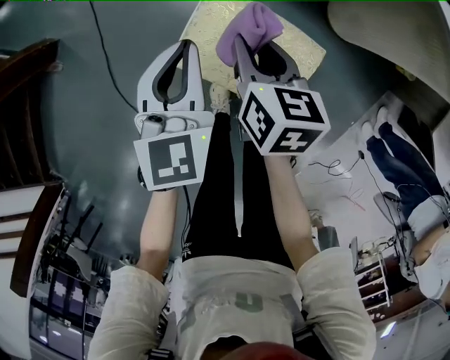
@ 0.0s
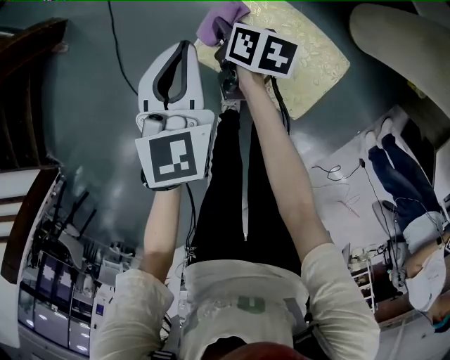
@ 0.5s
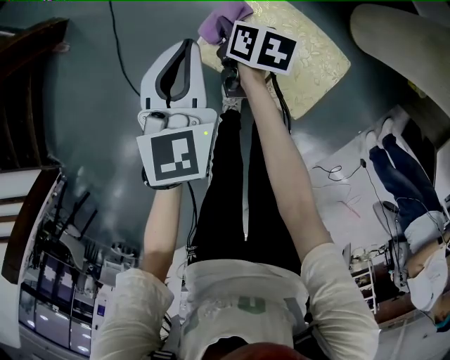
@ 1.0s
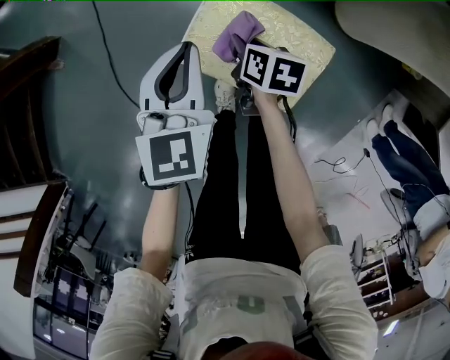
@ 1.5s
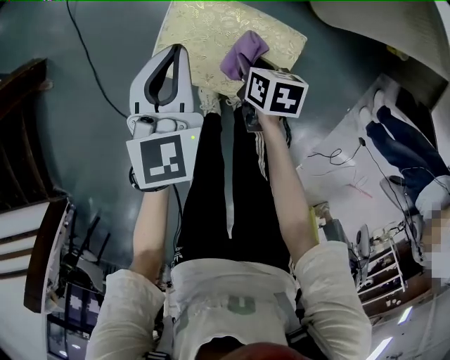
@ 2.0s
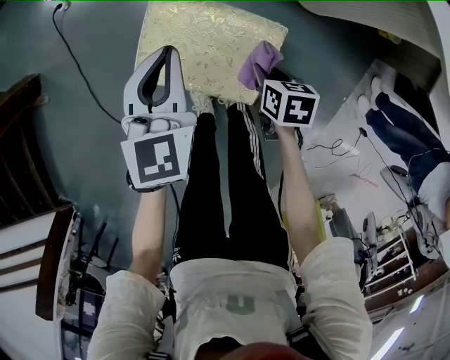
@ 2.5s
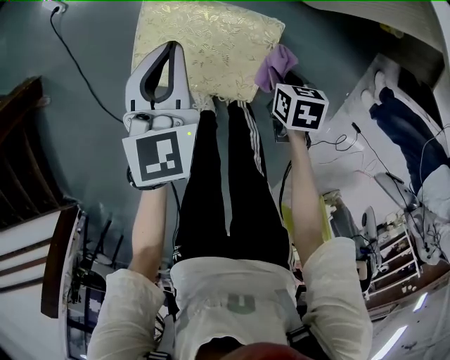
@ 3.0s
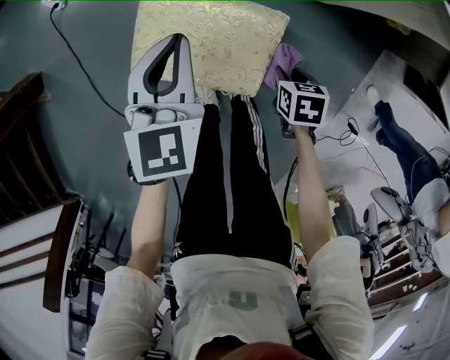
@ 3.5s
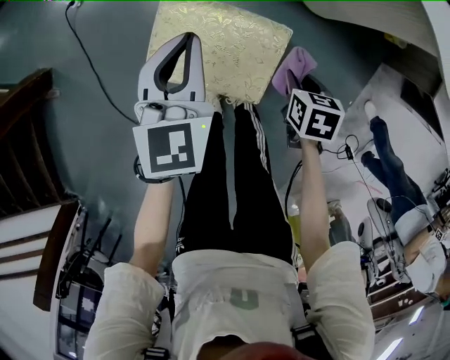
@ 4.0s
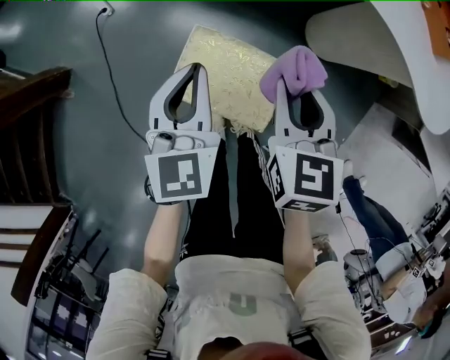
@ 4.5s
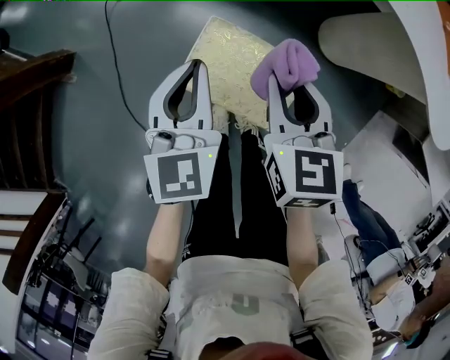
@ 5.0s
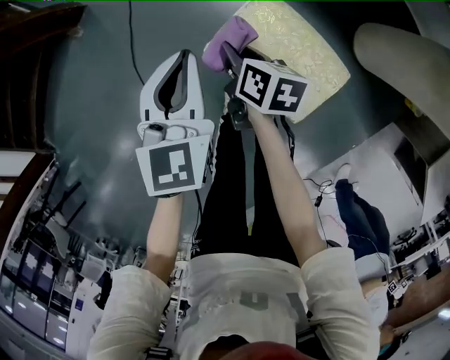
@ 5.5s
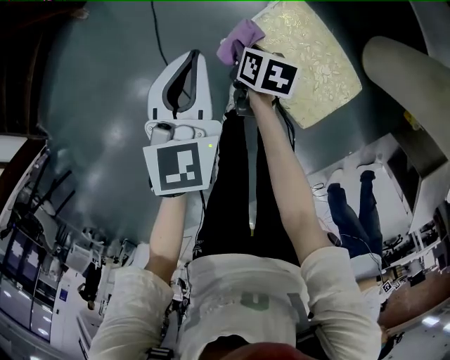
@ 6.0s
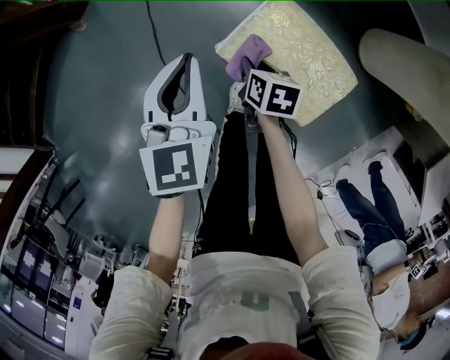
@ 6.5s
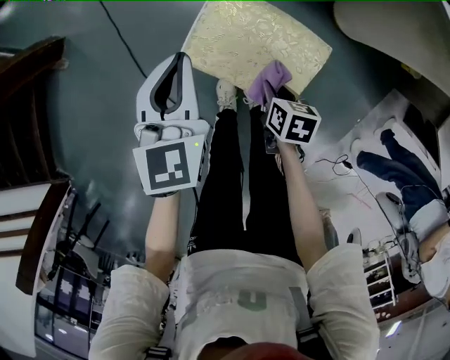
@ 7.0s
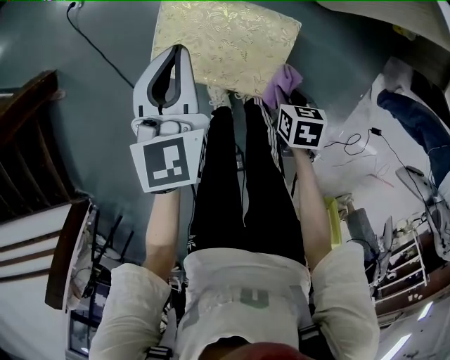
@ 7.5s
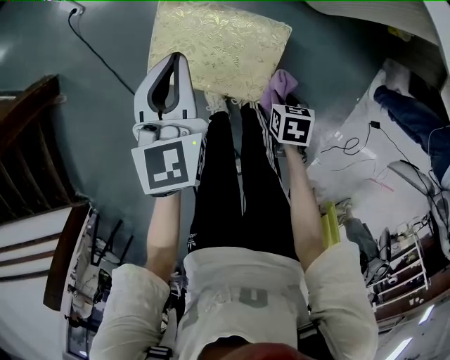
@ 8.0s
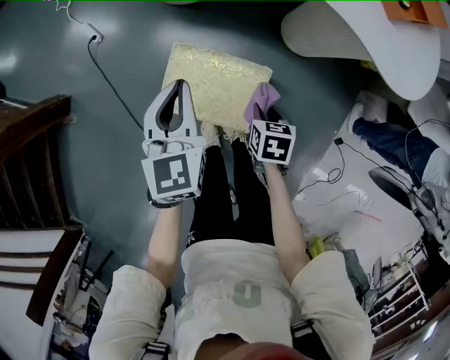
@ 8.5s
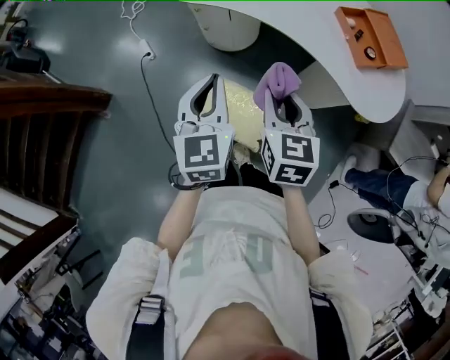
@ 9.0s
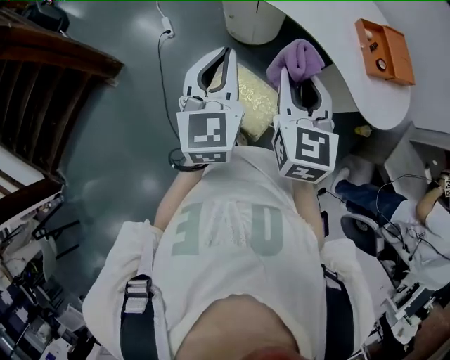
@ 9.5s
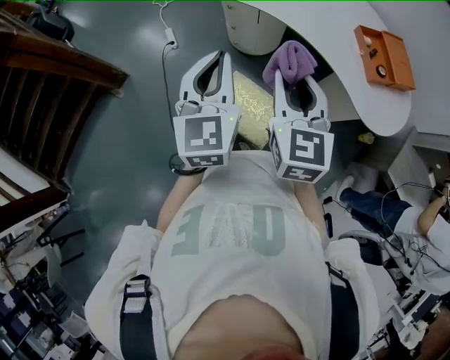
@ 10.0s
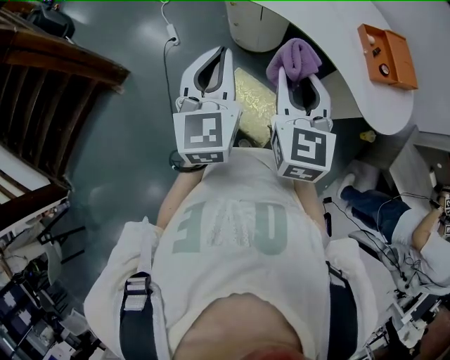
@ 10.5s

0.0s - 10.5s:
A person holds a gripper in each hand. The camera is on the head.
0.0s - 2.0s: The right gripper shifts about 15 cm downward and backward, and turns by some 20 degrees, while the left gripper travels to the left and back again, roughly 5 cm each way.
2.0s - 4.0s: The left gripper ends up about 5 cm from where it was; the right gripper ends up approximately 15 cm from where it was.
4.0s - 6.5s: The left gripper shifts by roughly 25 cm, and rotates some 30 degrees, while the right gripper travels upward and back again, approximately 25 cm each way, and swivels some 20 degrees.
6.5s - 8.5s: The left gripper moves about 25 cm, and changes its angle by approximately 20 degrees. The right gripper changes place by about 30 cm, and turns by roughly 20 degrees.
8.5s - 10.5s: The left gripper moves upward, some 30 cm, and turns by about 20 degrees. The right gripper moves upward, approximately 50 cm, and tips its fingers upward by roughly 50 degrees.

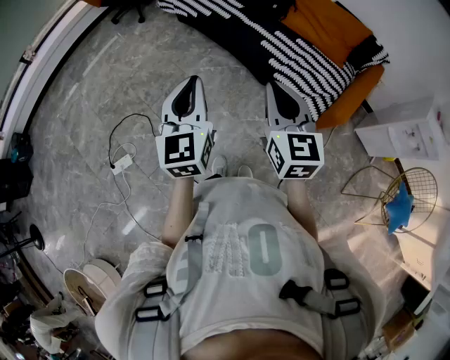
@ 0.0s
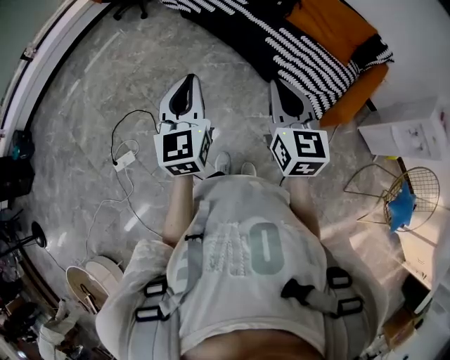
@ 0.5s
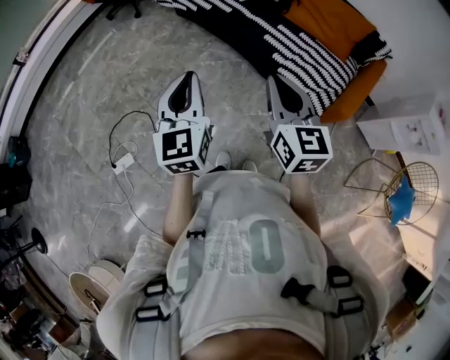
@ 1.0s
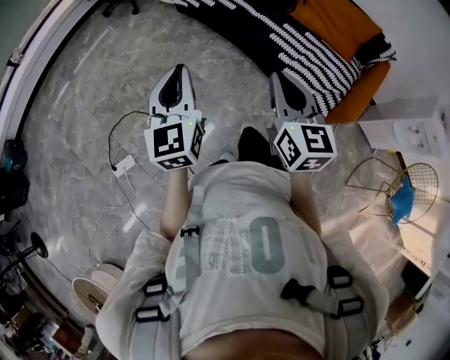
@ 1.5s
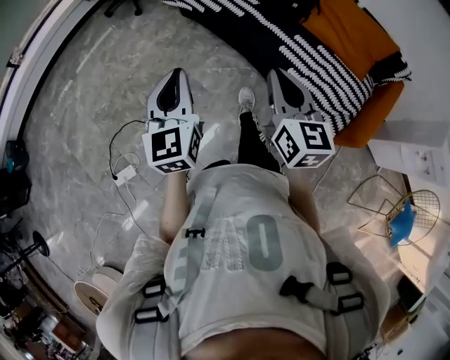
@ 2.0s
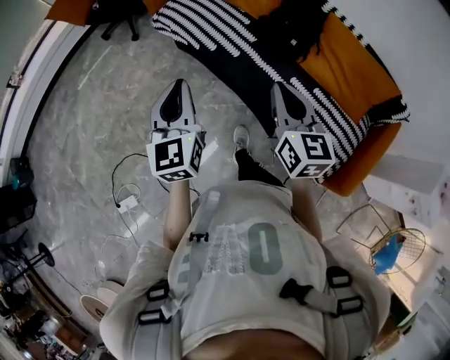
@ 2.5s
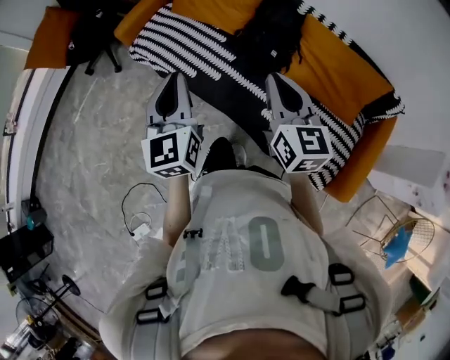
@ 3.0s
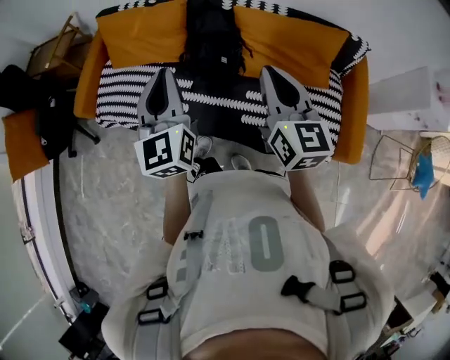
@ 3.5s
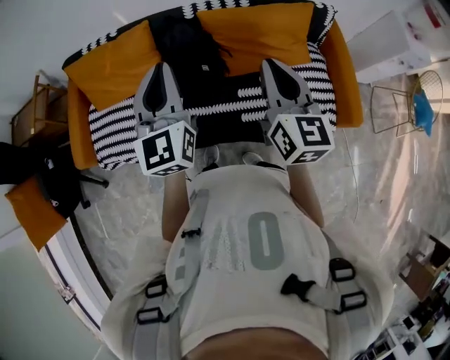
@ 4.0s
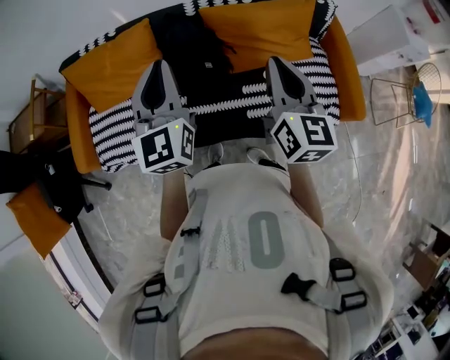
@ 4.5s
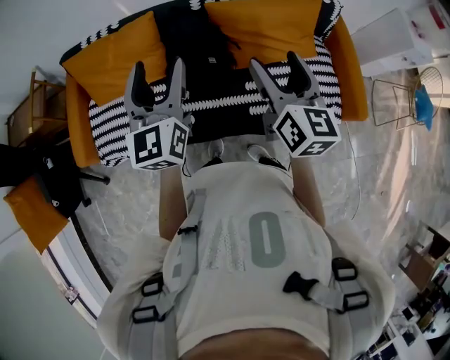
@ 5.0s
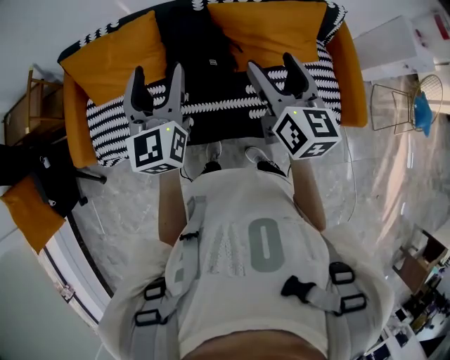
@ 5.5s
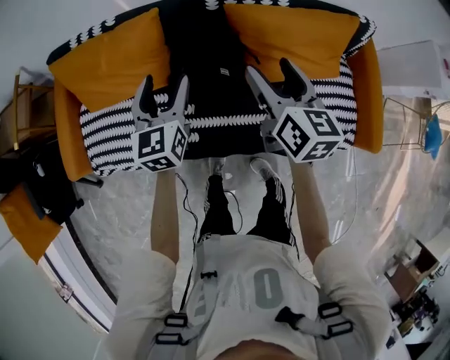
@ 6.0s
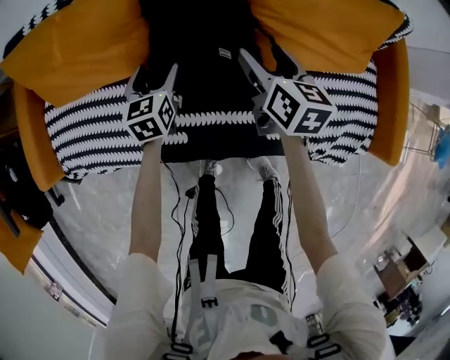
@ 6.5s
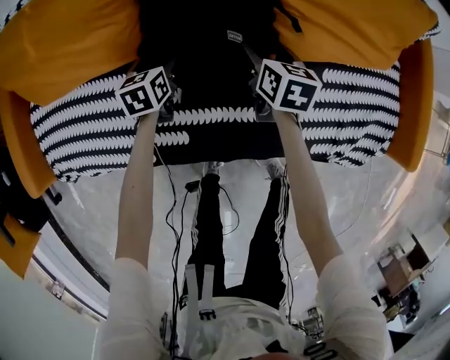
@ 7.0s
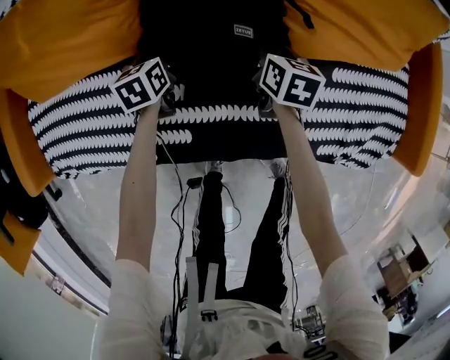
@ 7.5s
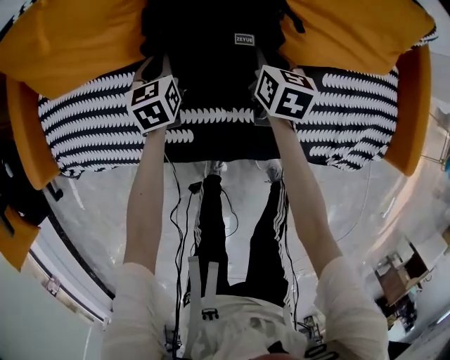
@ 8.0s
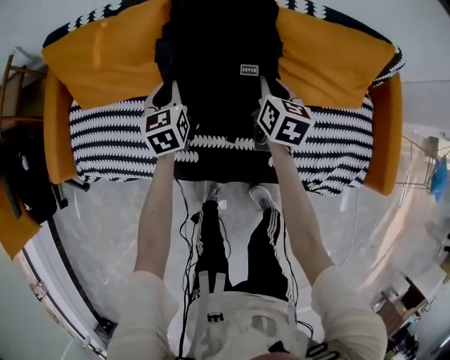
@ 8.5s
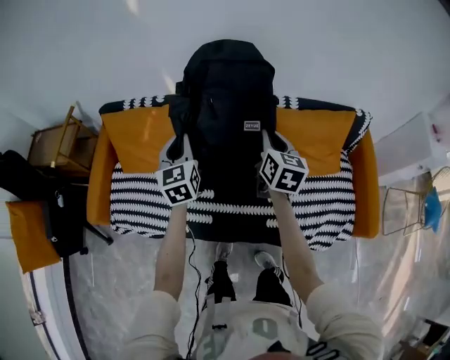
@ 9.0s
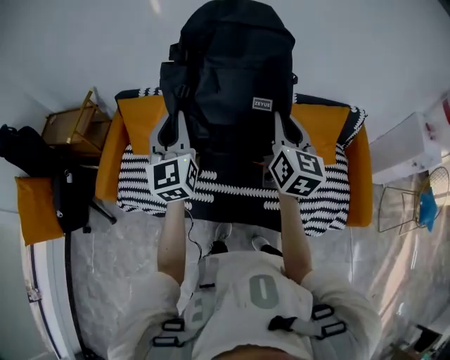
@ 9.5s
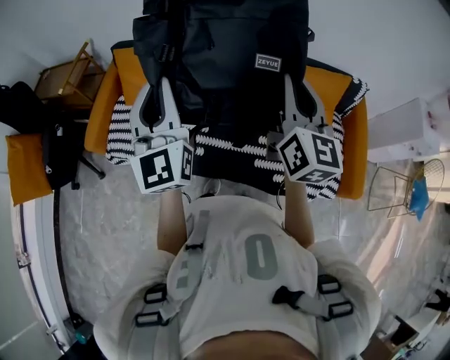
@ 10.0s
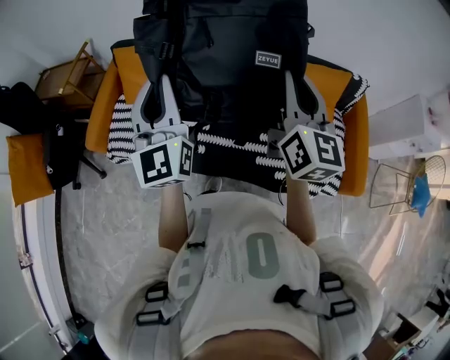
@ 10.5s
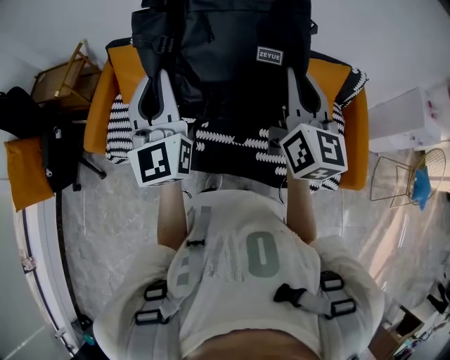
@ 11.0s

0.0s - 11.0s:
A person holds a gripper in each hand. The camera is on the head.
0.0s - 2.0s: The right gripper is displaced forward by roughly 20 cm. Meanwhile the left gripper is displaced forward and to the left by about 25 cm.
2.0s - 3.5s: The two grippers travel together, approximately 50 cm. The right gripper turns by some 30 degrees. Meanwhile the left gripper swivels some 30 degrees.
3.5s - 5.5s: The right gripper moves forward, roughly 5 cm, and opens up. Meanwhile the left gripper goes roughly 15 cm forward and to the left, changes its angle by some 20 degrees, and opens up.
5.5s - 7.5s: Both grippers travel together downward, approximately 60 cm. The right gripper points its fingers roughly 30 degrees further downward, and closes its fingers, while the left gripper tilts its fingers roughly 50 degrees downward, and closes.
7.5s - 9.0s: Both grippers travel together upward, roughly 50 cm. The right gripper turns by approximately 20 degrees; the left gripper tilts its fingers about 30 degrees upward.
9.0s - 11.0s: The left gripper moves backward and upward, roughly 35 cm, and angles its fingers upward, by approximately 30 degrees, while the right gripper is displaced upward and backward by roughly 30 cm, and rotates approximately 30 degrees.

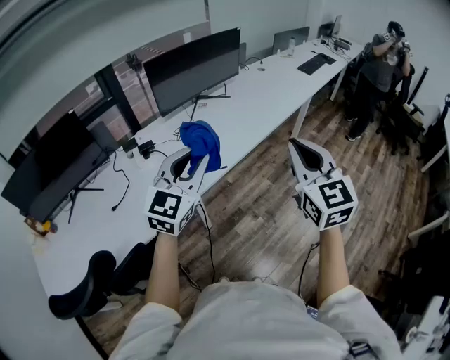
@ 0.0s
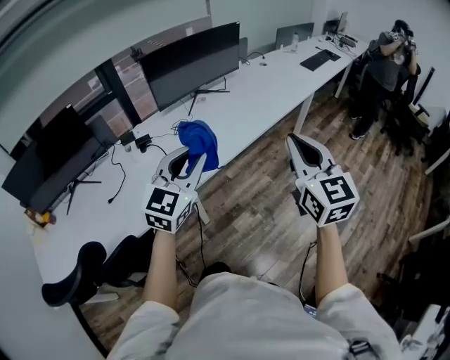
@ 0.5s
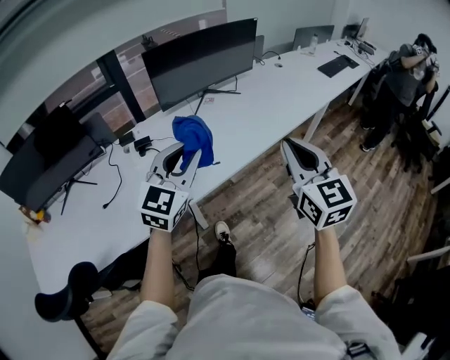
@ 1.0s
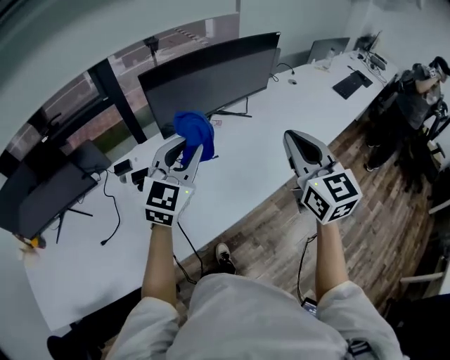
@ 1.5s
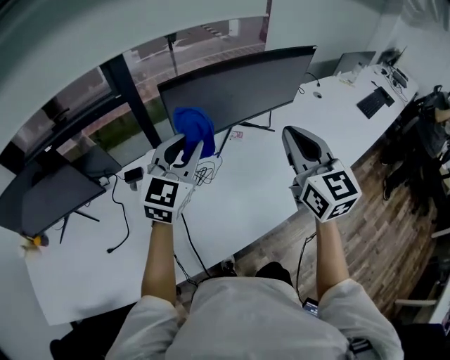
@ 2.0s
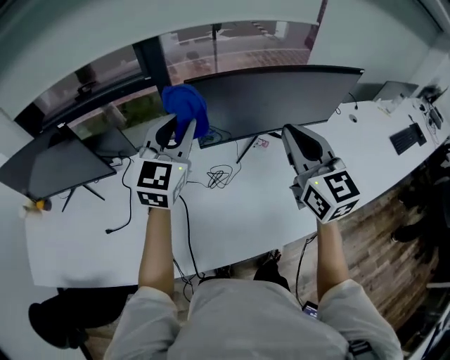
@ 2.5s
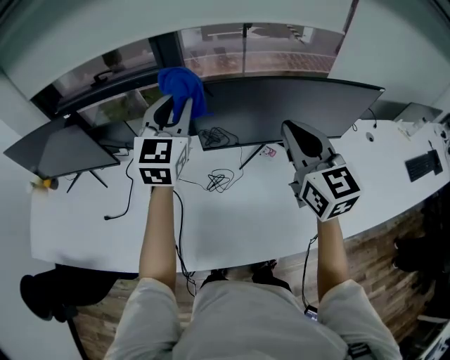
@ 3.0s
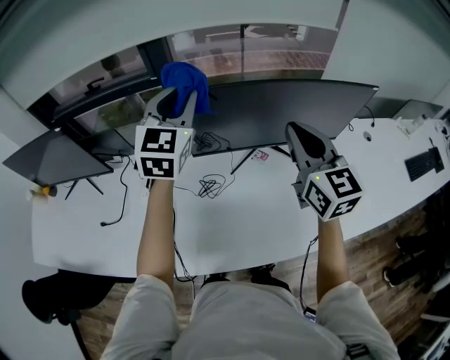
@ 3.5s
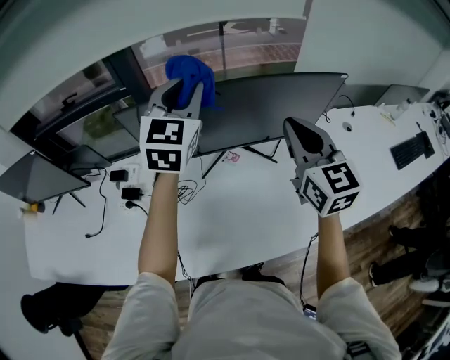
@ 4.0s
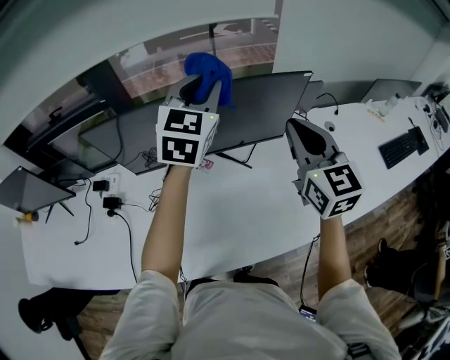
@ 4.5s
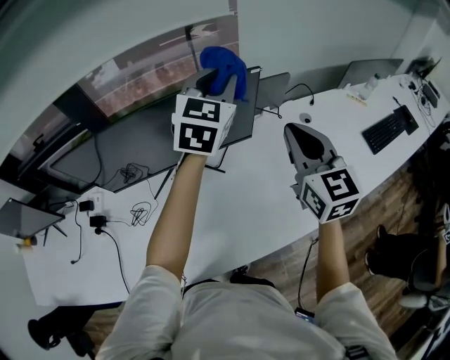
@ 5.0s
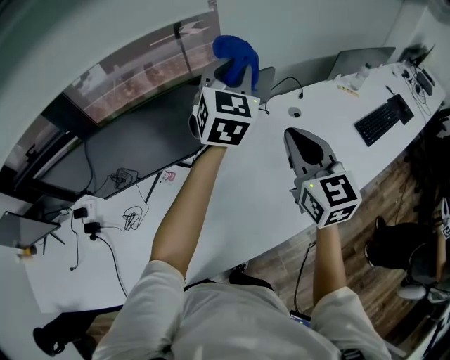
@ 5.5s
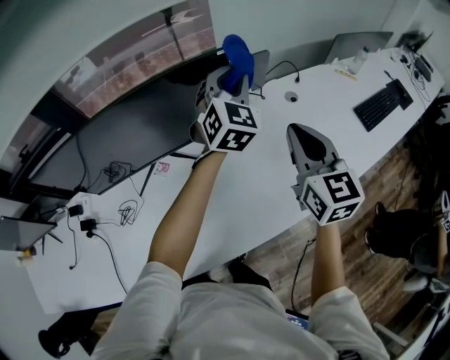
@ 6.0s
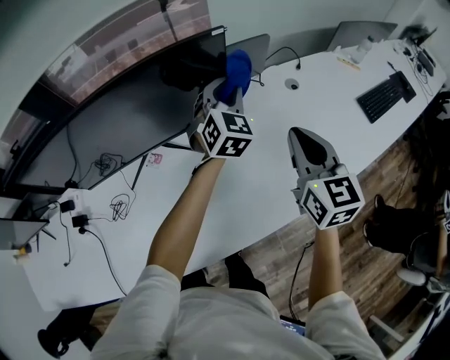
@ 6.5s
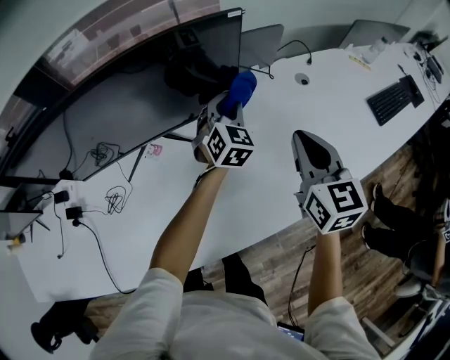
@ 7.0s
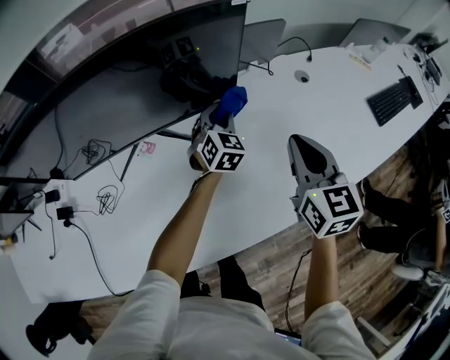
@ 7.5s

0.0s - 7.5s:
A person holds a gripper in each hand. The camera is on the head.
0.0s - 2.0s: Both grippers are carried forward, about 50 cm. The right gripper changes its angle by approximately 20 degrees.
2.0s - 4.0s: The right gripper changes place by about 25 cm; the left gripper moves some 25 cm, and swivels approximately 30 degrees.
4.0s - 5.5s: The two grippers go about 35 cm to the right.
5.5s - 7.5s: The left gripper travels downward by approximately 35 cm, and changes its angle by approximately 20 degrees. The right gripper is displaced downward by approximately 15 cm.
